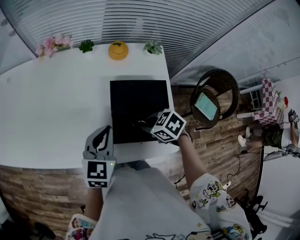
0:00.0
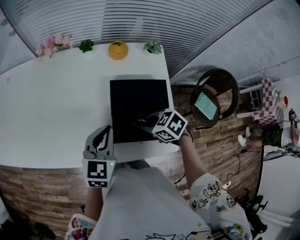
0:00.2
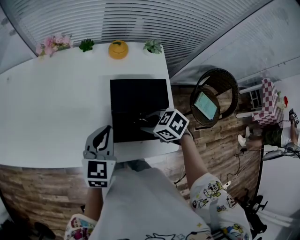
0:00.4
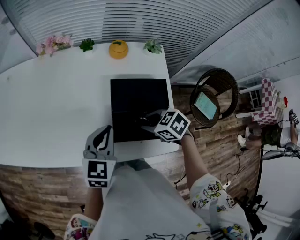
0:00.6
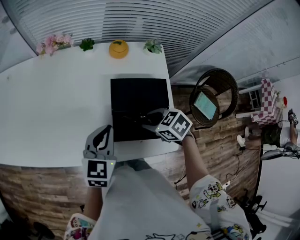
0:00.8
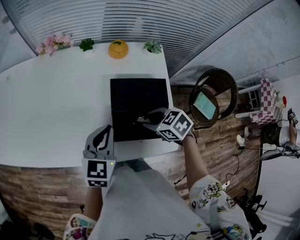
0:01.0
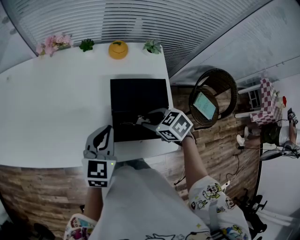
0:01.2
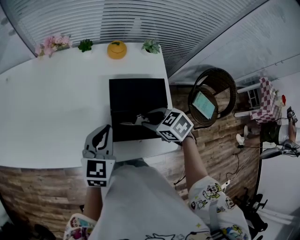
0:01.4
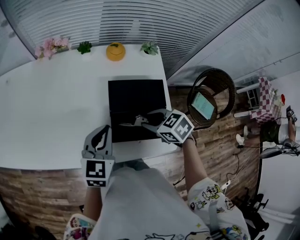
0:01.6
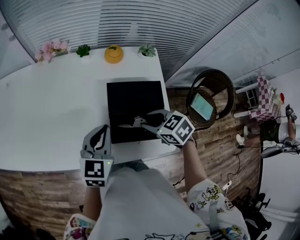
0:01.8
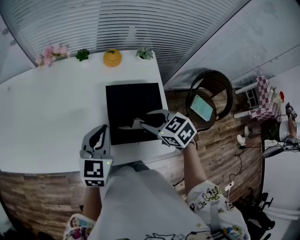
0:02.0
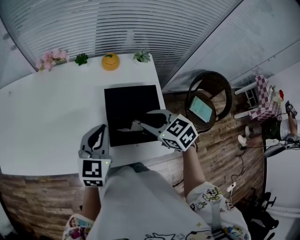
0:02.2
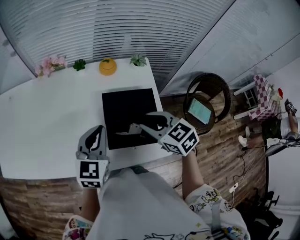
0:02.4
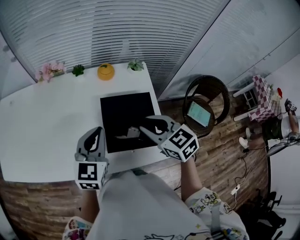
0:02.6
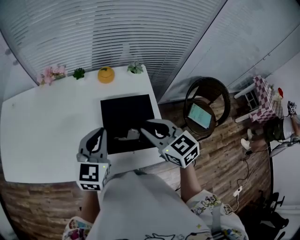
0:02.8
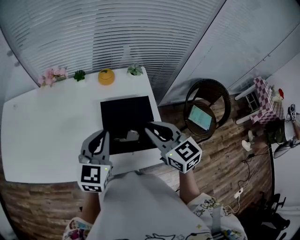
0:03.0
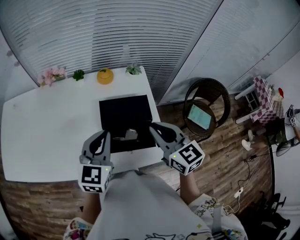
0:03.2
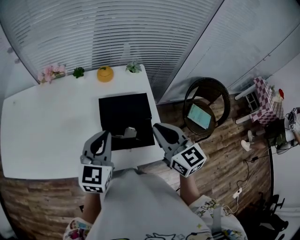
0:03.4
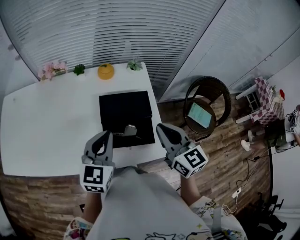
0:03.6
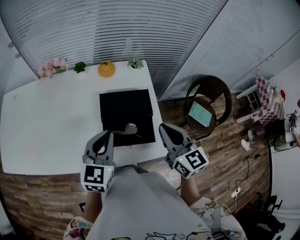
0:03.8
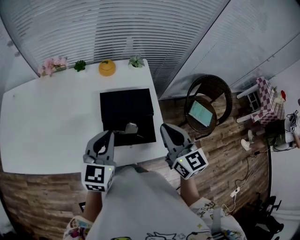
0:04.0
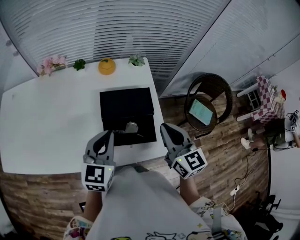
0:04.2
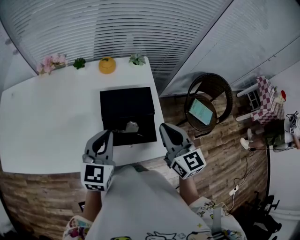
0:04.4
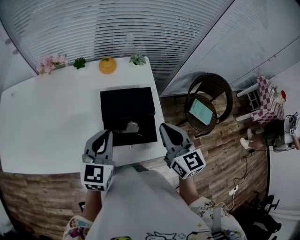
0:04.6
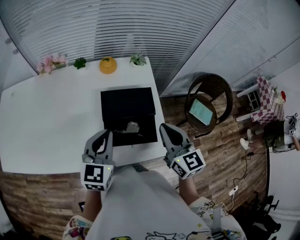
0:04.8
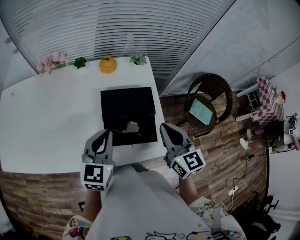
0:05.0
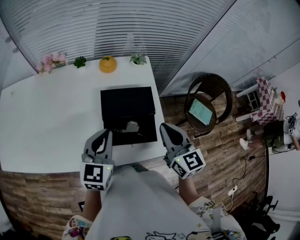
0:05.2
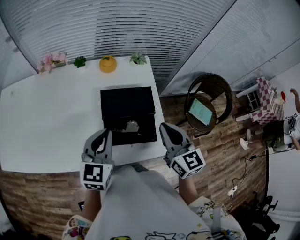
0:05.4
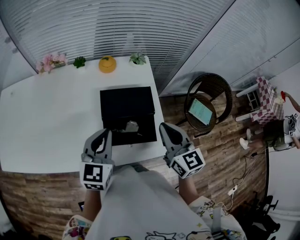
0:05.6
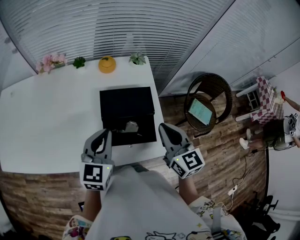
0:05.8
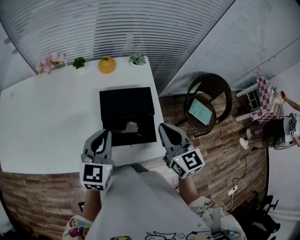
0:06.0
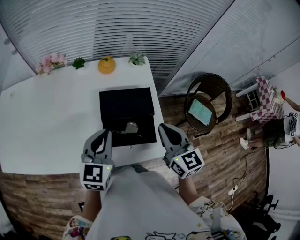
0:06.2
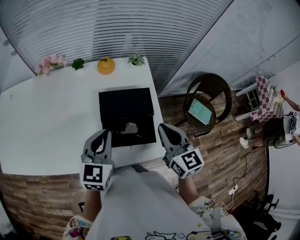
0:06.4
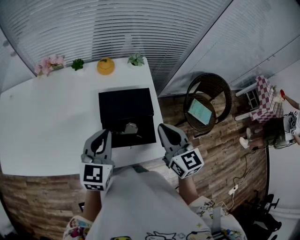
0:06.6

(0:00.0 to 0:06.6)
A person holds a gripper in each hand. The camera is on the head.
0:00.0 - 0:01.6: The right gripper opens.
0:01.6 - 0:03.2: The right gripper is displaced upward by about 15 cm, points its fingers roughly 40 degrees further upward, and closes its fingers. Meanwhile the left gripper is displaced upward by approximately 10 cm.
0:03.2 - 0:05.0: The grippers stay close to where they were, moving slightly.
0:05.0 - 0:06.6: Both grippers stay put.

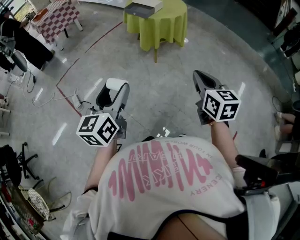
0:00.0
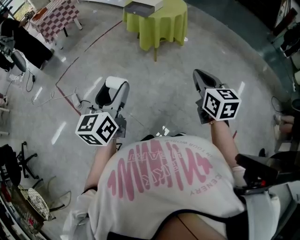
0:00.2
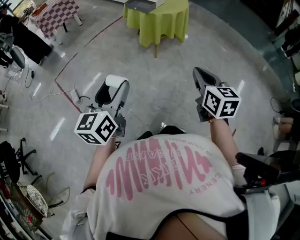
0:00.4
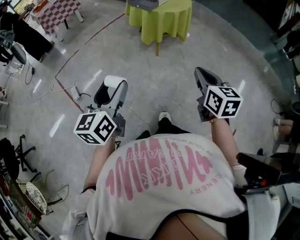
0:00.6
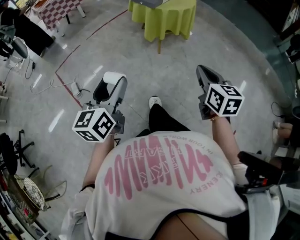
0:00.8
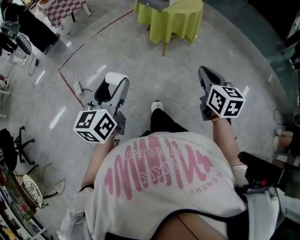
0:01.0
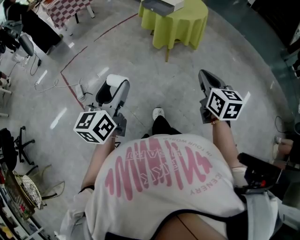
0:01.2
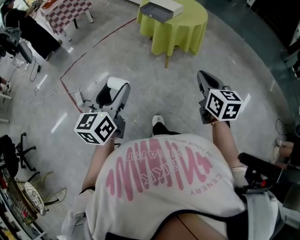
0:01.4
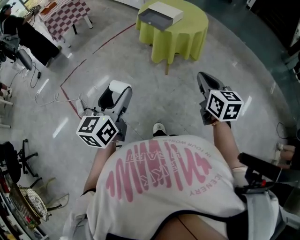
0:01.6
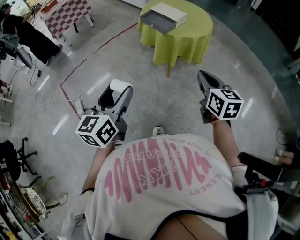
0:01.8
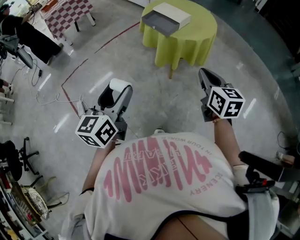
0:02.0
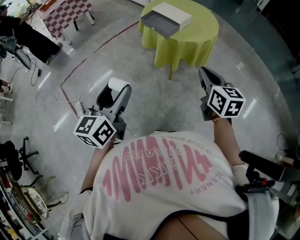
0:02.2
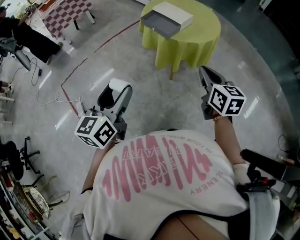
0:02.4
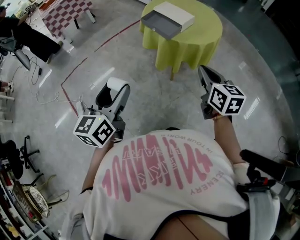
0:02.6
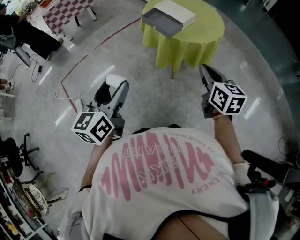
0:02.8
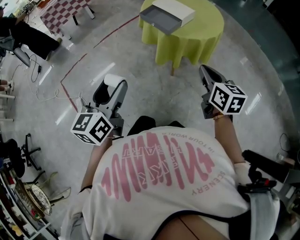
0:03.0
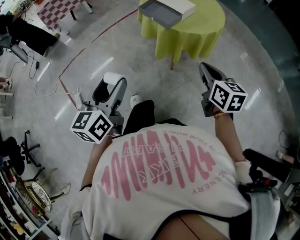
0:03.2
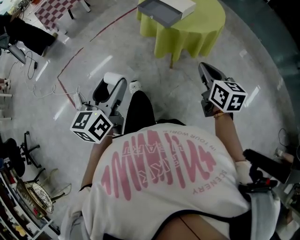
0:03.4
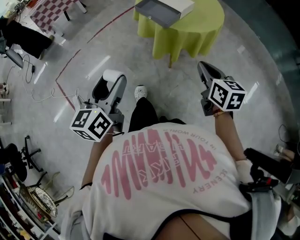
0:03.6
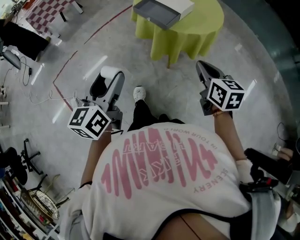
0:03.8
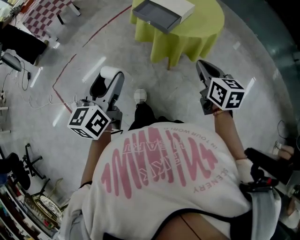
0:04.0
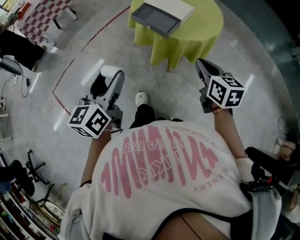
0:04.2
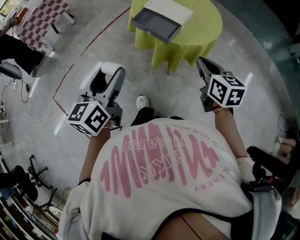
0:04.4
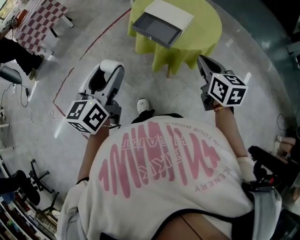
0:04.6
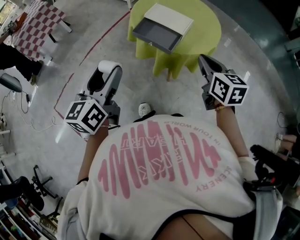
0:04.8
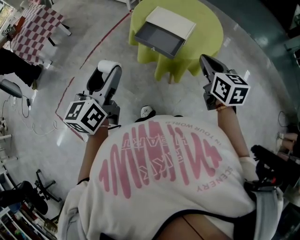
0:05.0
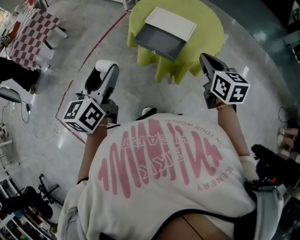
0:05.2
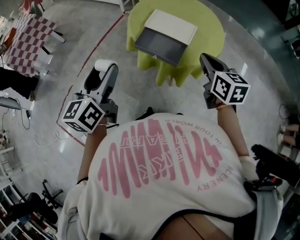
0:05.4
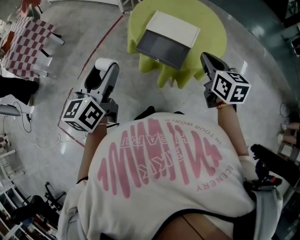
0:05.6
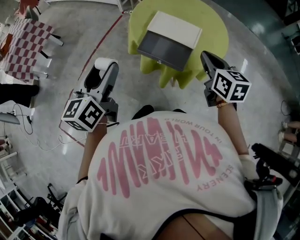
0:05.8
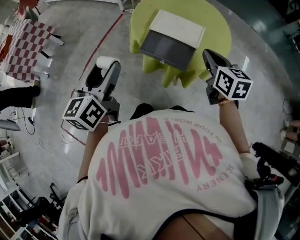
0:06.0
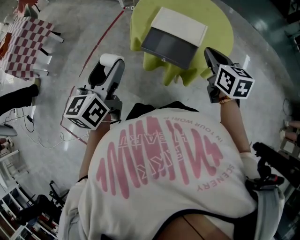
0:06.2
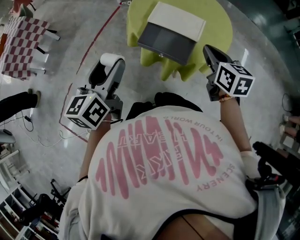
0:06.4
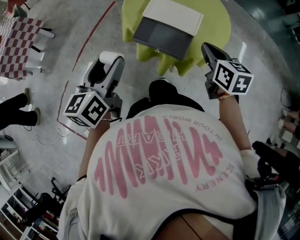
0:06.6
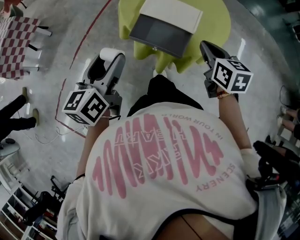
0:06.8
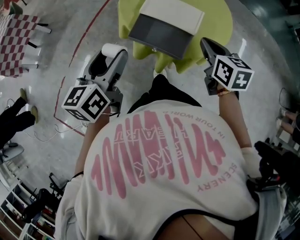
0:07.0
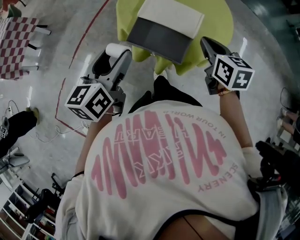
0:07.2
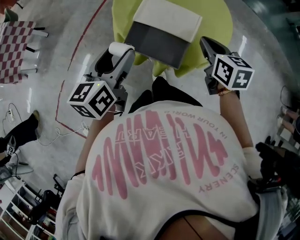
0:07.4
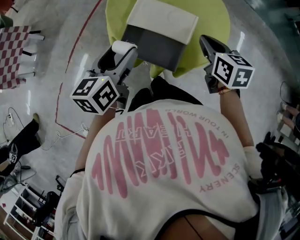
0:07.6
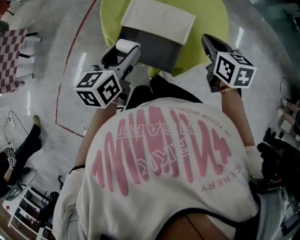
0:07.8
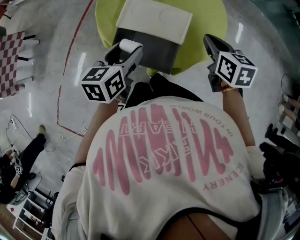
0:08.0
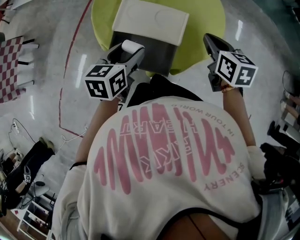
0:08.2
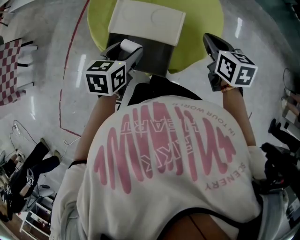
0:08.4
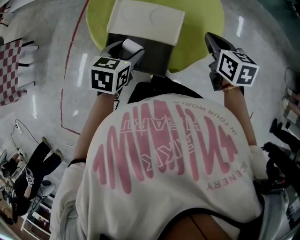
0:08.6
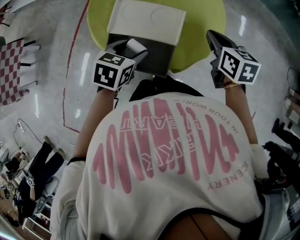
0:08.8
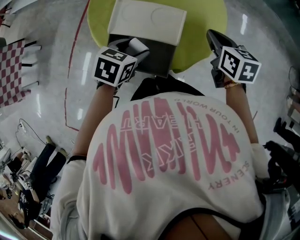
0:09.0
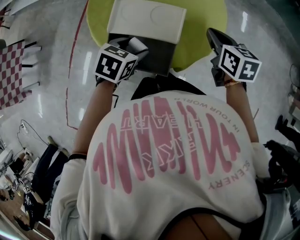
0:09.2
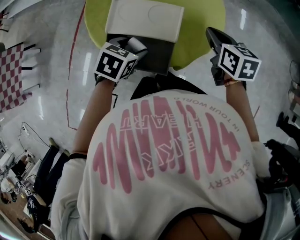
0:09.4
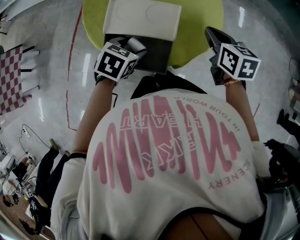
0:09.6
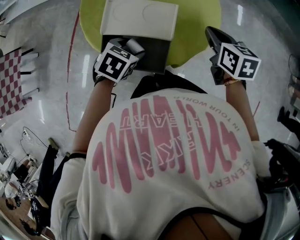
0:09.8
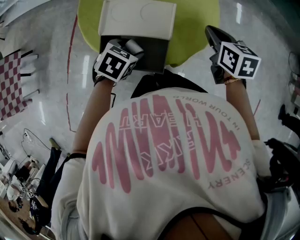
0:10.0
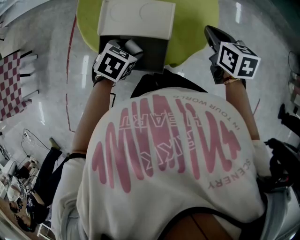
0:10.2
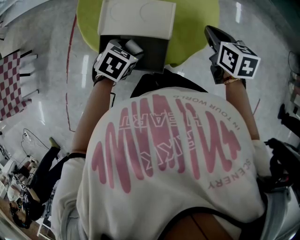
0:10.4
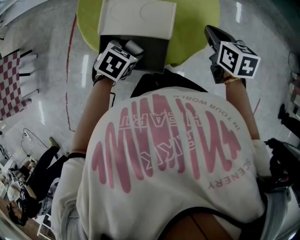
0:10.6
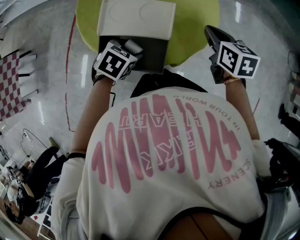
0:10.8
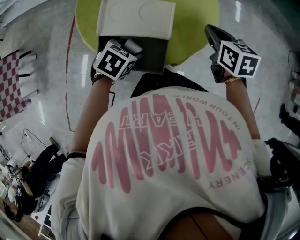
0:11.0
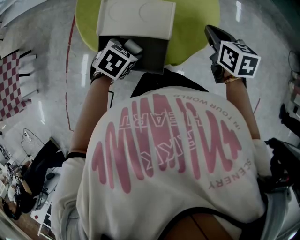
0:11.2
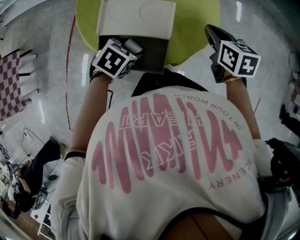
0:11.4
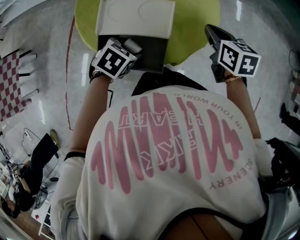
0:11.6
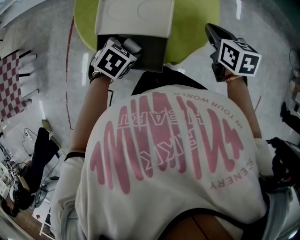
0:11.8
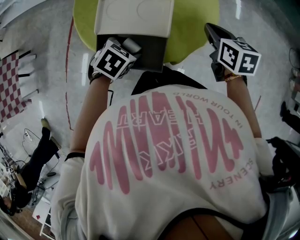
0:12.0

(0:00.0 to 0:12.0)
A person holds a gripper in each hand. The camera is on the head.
0:00.0 - 0:01.6: Both grippers travel together forward, about 25 cm.
0:01.6 - 0:03.0: The grippers both shift forward by approximately 20 cm.
0:03.0 - 0:04.4: The right gripper shifts approximately 15 cm forward and to the left. Meanwhile the left gripper moves forward, some 20 cm.
0:04.4 - 0:06.0: Both grippers travel together forward, about 25 cm.
0:06.0 - 0:07.6: The left gripper shifts roughly 20 cm forward, to the right and downward. Meanwhile the right gripper travels forward, downward and to the right by about 15 cm.
0:07.6 - 0:09.0: The right gripper is displaced to the right and forward by approximately 10 cm, while the left gripper goes approximately 15 cm downward, to the right and forward, and tips its fingers downward by roughly 30 degrees.
0:09.0 - 0:10.4: The left gripper changes place by some 5 cm.
0:10.4 - 0:12.0: The grippers stay close to where they were, moving slightly.

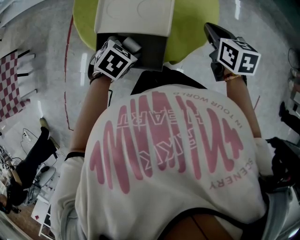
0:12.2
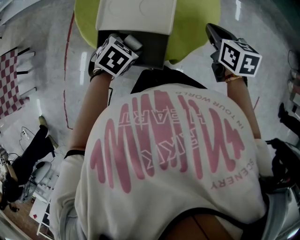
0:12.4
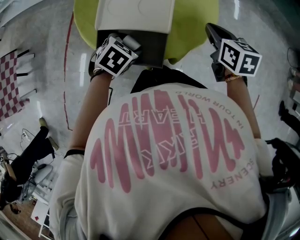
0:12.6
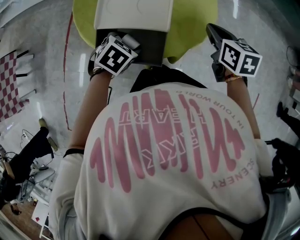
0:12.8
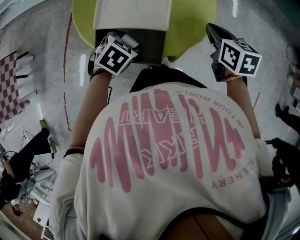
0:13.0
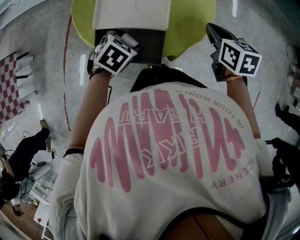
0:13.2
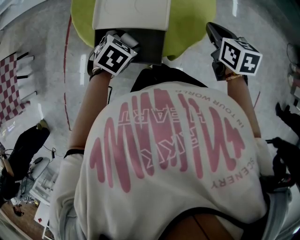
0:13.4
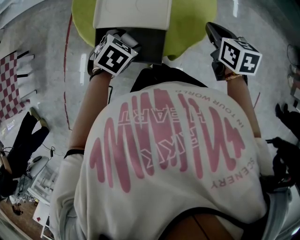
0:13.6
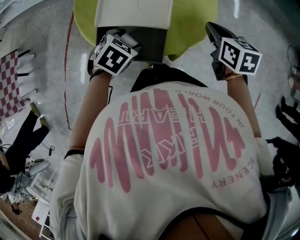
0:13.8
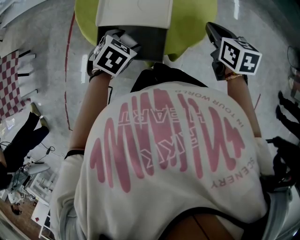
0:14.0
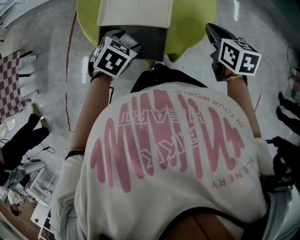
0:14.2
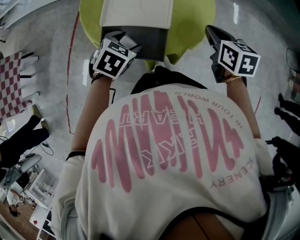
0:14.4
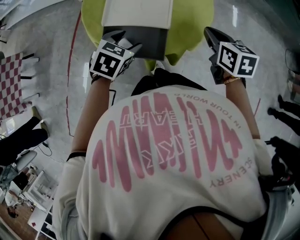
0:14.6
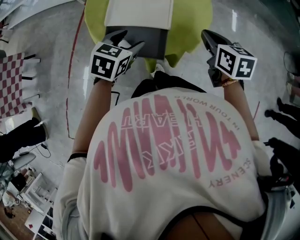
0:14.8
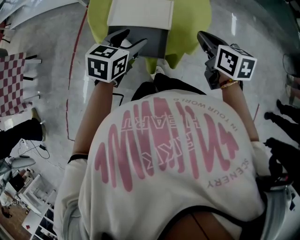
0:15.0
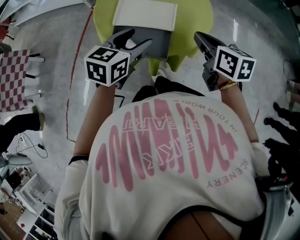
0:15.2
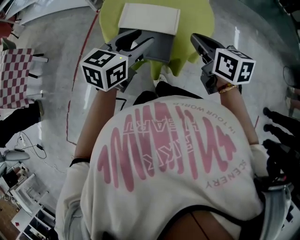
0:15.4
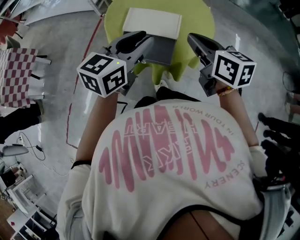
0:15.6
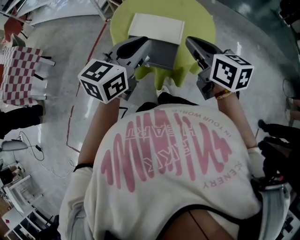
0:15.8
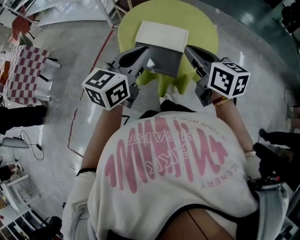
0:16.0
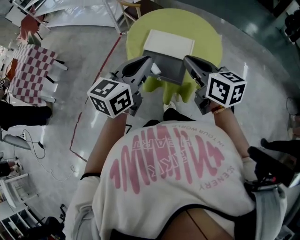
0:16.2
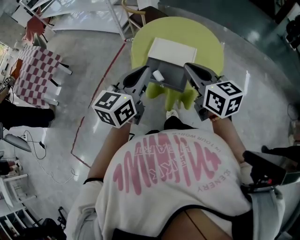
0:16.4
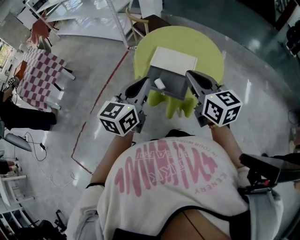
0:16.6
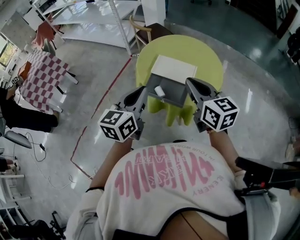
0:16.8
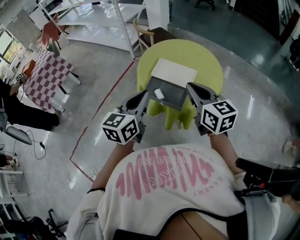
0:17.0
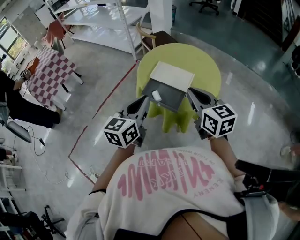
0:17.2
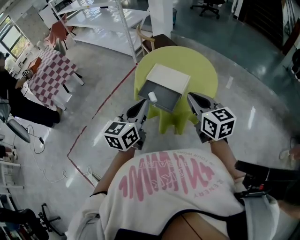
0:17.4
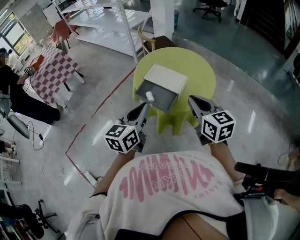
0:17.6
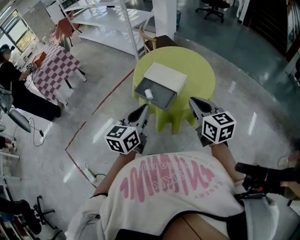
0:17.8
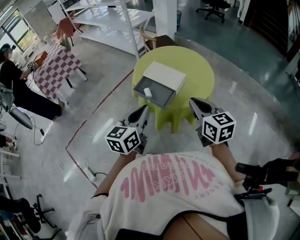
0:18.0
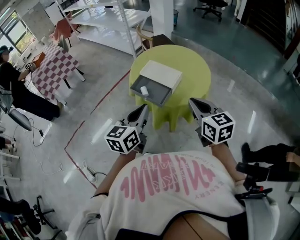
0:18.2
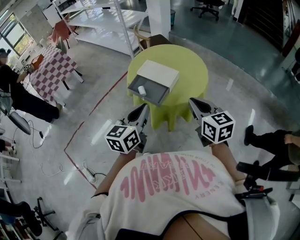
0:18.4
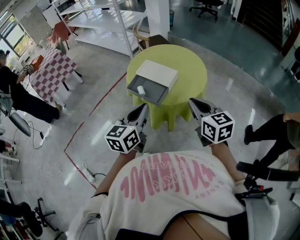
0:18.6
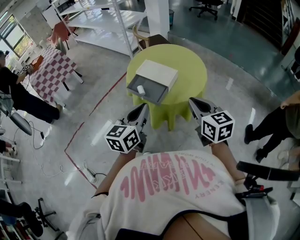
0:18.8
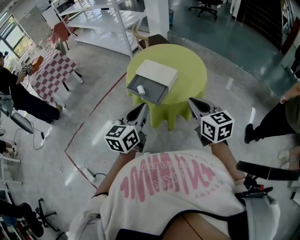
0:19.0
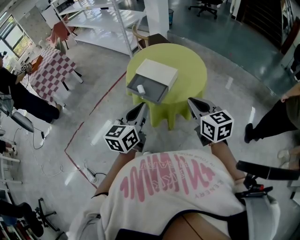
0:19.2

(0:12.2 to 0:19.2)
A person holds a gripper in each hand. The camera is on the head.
0:12.2 - 0:13.6: The grippers make only small movements.
0:13.6 - 0:15.0: The left gripper shifts some 15 cm upward, and changes its angle by some 30 degrees. The right gripper shifts about 10 cm backward and upward.
0:15.0 - 0:16.4: The right gripper is displaced upward, to the left and backward by approximately 25 cm, and rotates some 30 degrees. Meanwhile the left gripper is displaced upward and backward by some 25 cm, rotates approximately 30 degrees, and closes.
0:16.4 - 0:17.8: The left gripper shifts approximately 15 cm backward and to the right; the right gripper travels to the right and backward by roughly 15 cm.
0:17.8 - 0:19.2: The right gripper moves roughly 5 cm.
